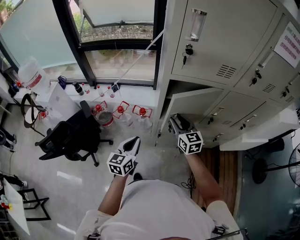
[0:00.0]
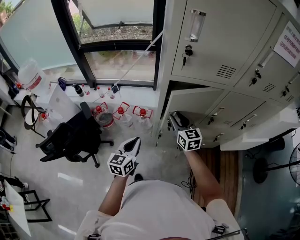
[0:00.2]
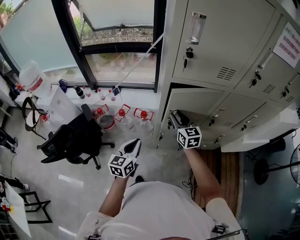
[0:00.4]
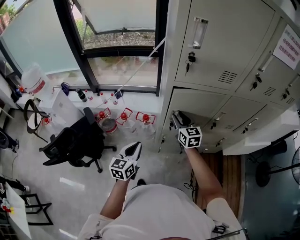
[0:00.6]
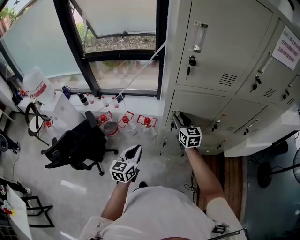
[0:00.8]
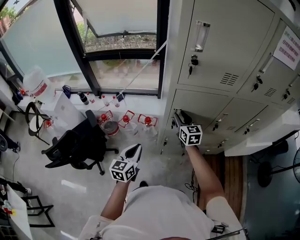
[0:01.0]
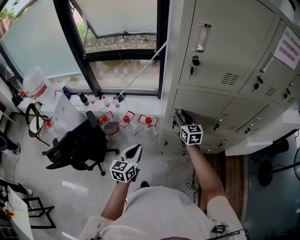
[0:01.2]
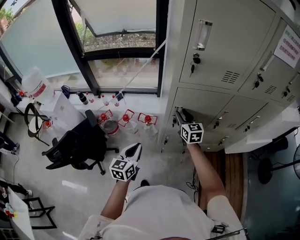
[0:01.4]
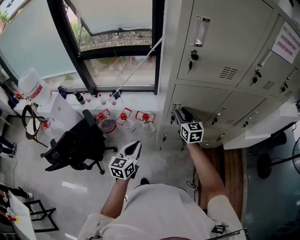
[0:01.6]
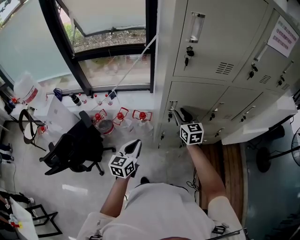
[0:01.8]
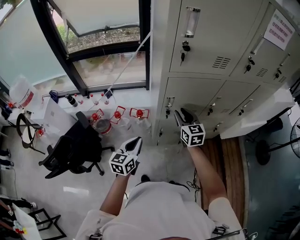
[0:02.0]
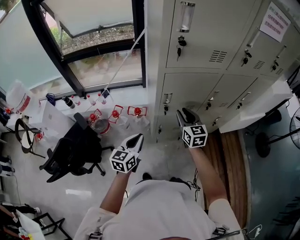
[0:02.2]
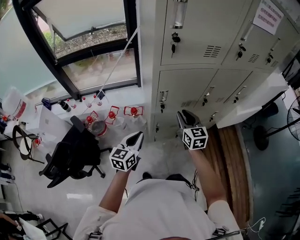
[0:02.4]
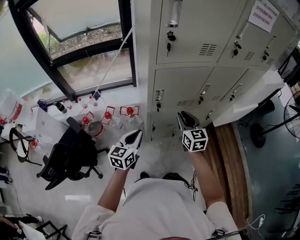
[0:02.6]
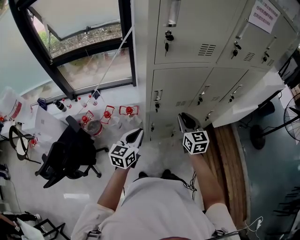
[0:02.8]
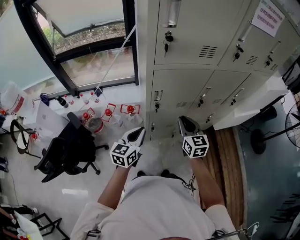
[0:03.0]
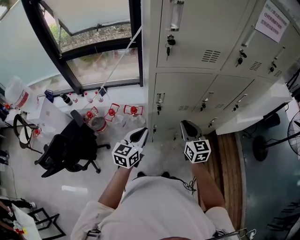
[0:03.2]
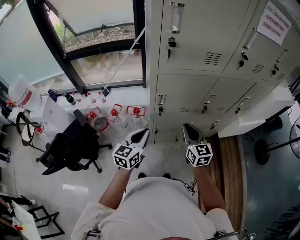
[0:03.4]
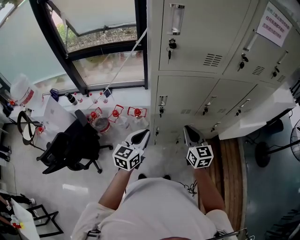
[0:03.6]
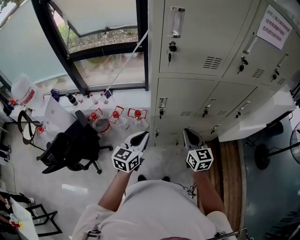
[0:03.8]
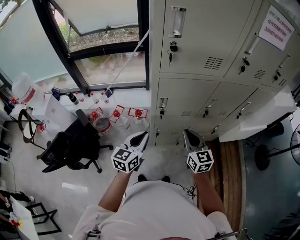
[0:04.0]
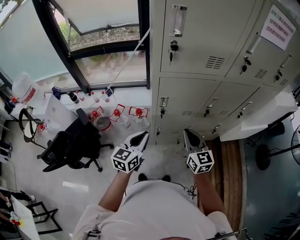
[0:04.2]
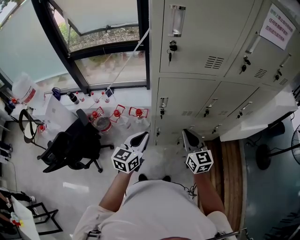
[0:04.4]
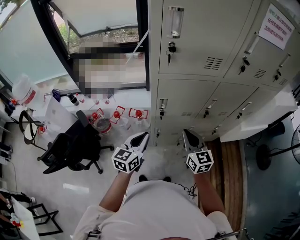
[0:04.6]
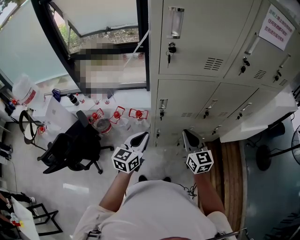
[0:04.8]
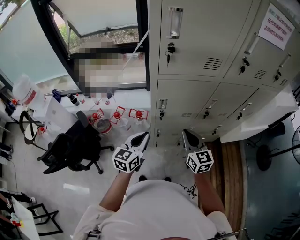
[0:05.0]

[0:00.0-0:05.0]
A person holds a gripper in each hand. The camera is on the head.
0:00.0 to 0:01.6: The right gripper moves forward, approximately 5 cm.
0:01.6 to 0:03.4: The right gripper goes roughly 15 cm backward and to the right, and closes. Meanwhile the left gripper shifts about 10 cm to the right.
0:03.4 to 0:05.0: The grippers stay close to where they were, moving slightly.

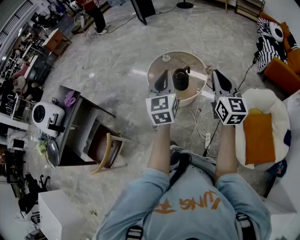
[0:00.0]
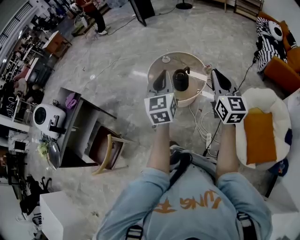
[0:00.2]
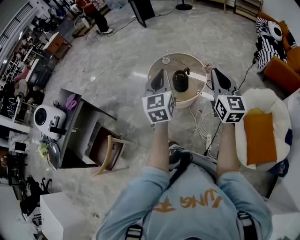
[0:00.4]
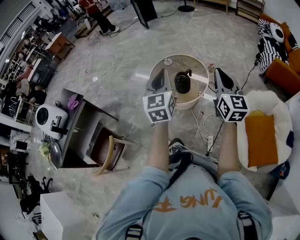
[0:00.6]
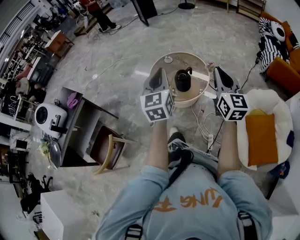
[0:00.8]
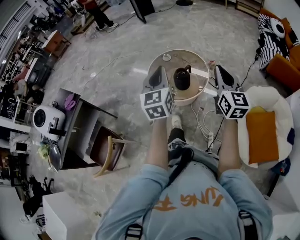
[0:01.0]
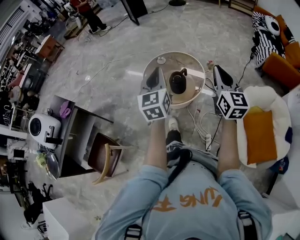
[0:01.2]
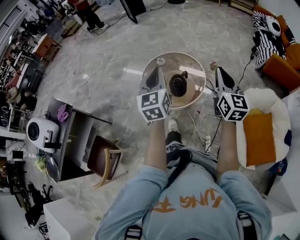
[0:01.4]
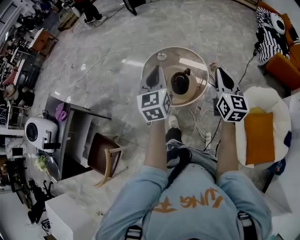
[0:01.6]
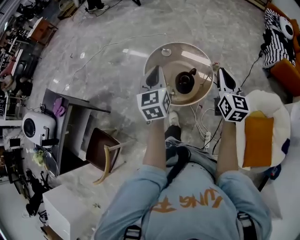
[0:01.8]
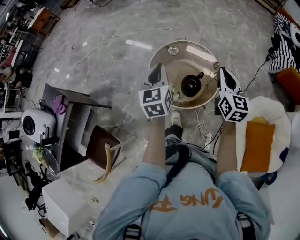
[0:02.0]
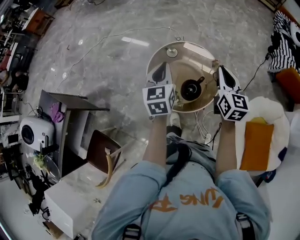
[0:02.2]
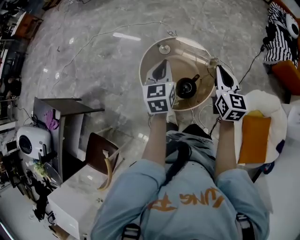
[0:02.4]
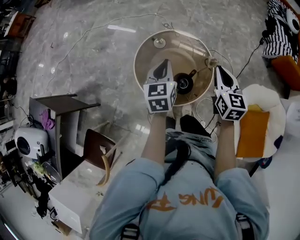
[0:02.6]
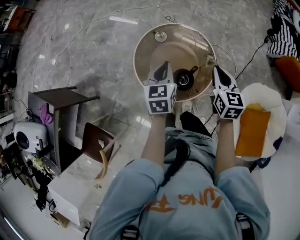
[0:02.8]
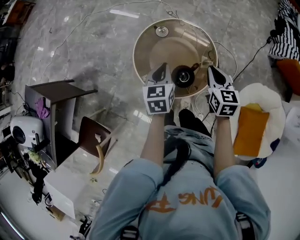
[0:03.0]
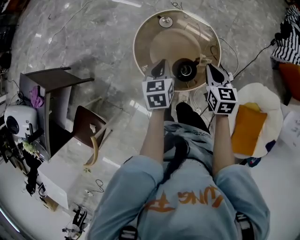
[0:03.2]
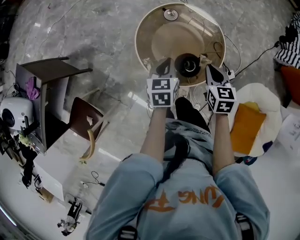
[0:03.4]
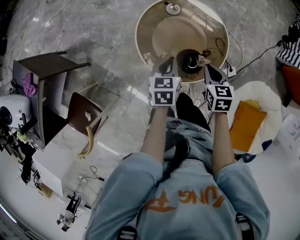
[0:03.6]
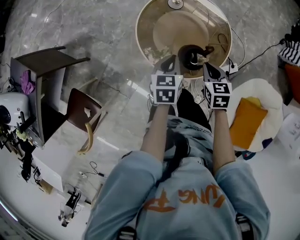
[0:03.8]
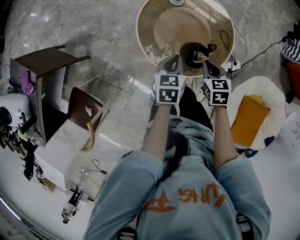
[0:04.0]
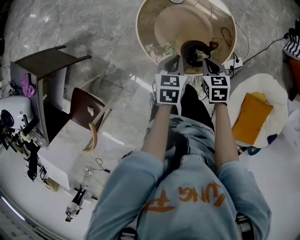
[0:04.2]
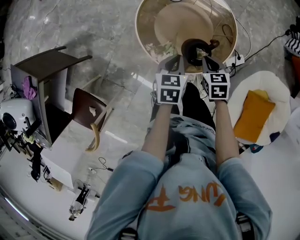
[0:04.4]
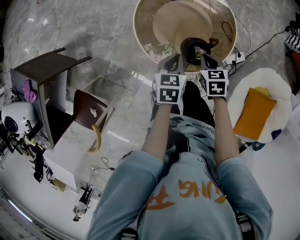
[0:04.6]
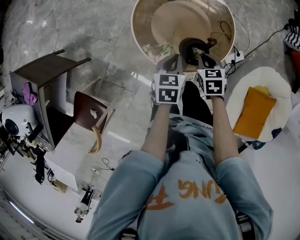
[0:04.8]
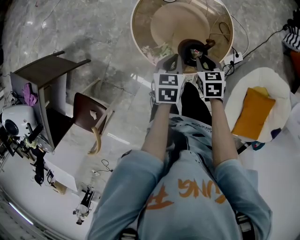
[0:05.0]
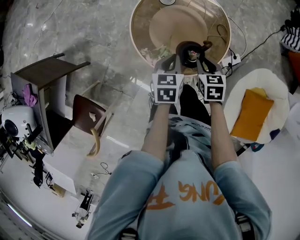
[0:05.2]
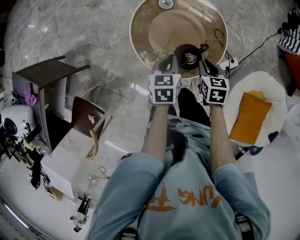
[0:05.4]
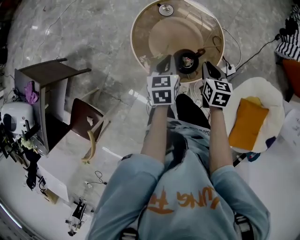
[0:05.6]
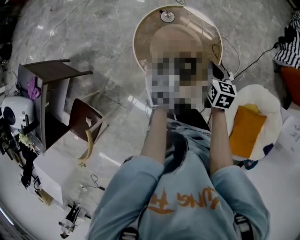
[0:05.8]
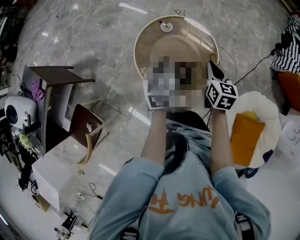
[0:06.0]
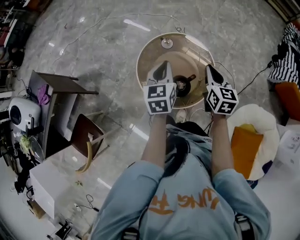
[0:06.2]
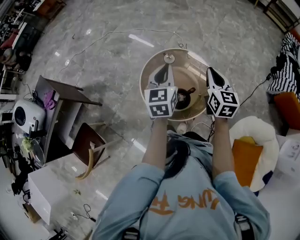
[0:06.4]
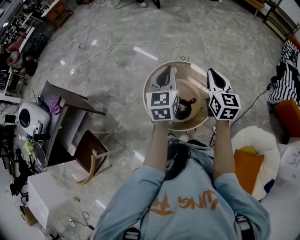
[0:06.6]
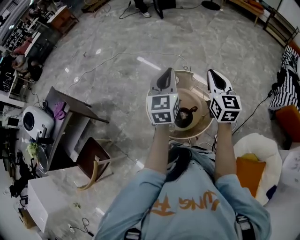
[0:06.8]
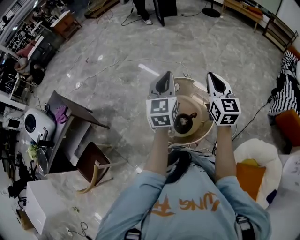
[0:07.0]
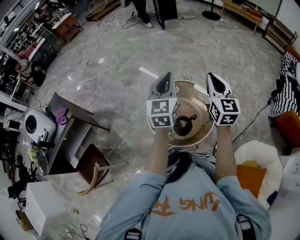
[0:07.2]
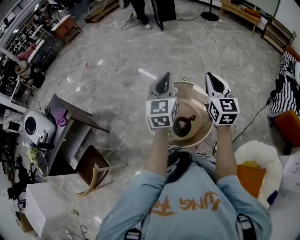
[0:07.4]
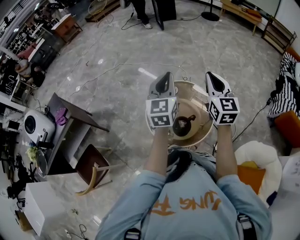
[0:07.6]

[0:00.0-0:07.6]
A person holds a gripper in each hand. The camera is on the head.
0:00.0 to 0:01.6: The left gripper goes about 15 cm forward. The right gripper heads forward and downward, covering about 15 cm.
0:01.6 to 0:03.0: The left gripper heads downward and forward, covering about 30 cm, and rotates some 30 degrees. Meanwhile the right gripper travels forward and downward by some 30 cm, and rotates roughly 30 degrees.
0:03.0 to 0:04.6: The grippers both shift downward by some 15 cm. The right gripper swivels roughly 30 degrees.
0:04.6 to 0:06.0: Both grippers move upward, about 15 cm. The right gripper changes its angle by about 30 degrees, while the left gripper changes its angle by about 20 degrees.
0:06.0 to 0:07.6: Both grippers travel together upward, approximately 25 cm. The left gripper swivels some 30 degrees, while the right gripper tips its fingers upward by about 30 degrees.

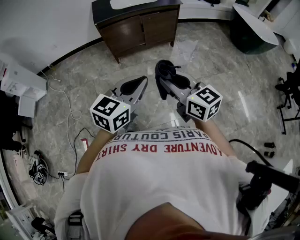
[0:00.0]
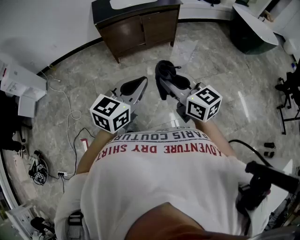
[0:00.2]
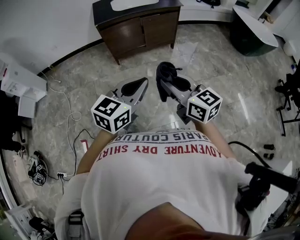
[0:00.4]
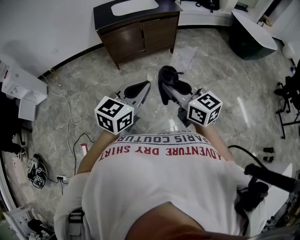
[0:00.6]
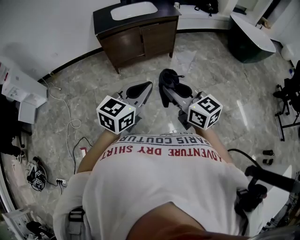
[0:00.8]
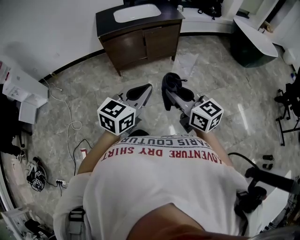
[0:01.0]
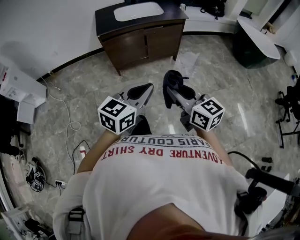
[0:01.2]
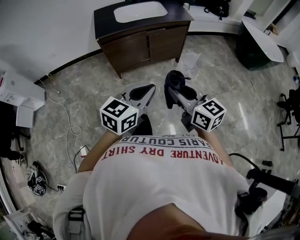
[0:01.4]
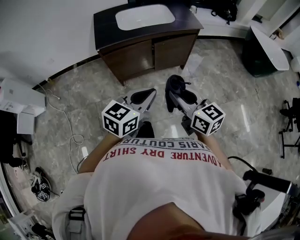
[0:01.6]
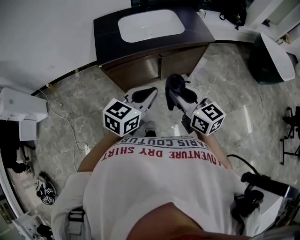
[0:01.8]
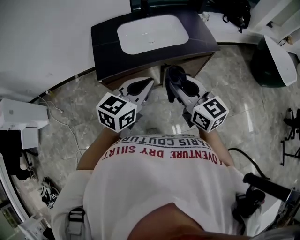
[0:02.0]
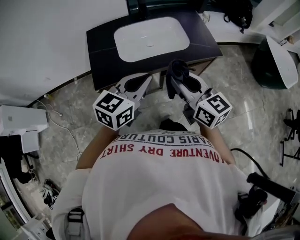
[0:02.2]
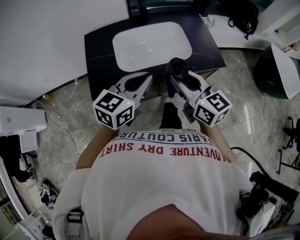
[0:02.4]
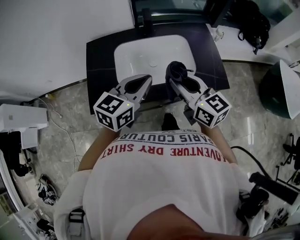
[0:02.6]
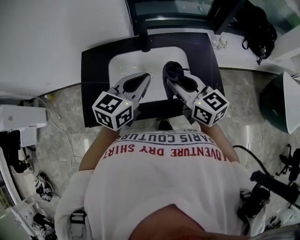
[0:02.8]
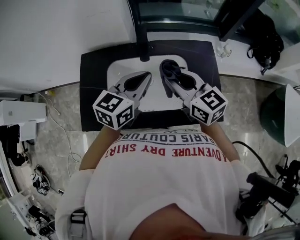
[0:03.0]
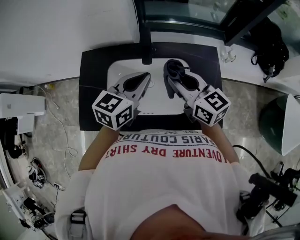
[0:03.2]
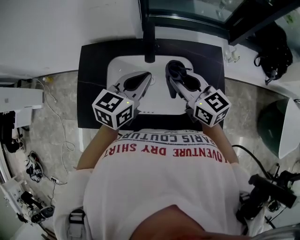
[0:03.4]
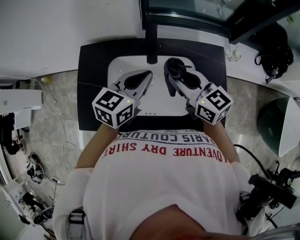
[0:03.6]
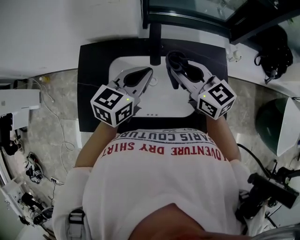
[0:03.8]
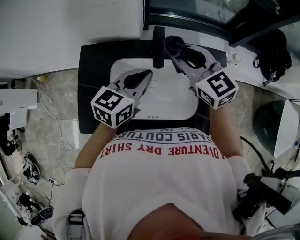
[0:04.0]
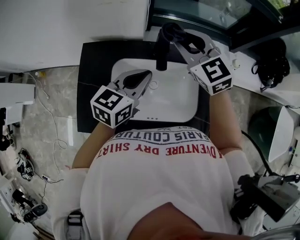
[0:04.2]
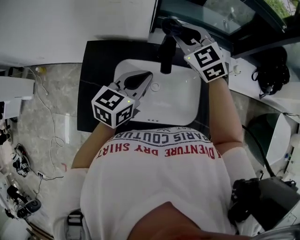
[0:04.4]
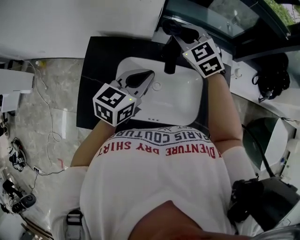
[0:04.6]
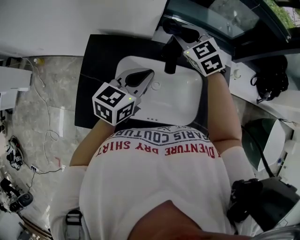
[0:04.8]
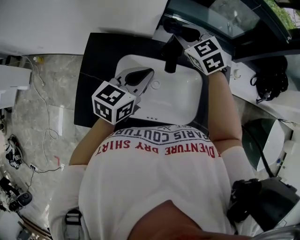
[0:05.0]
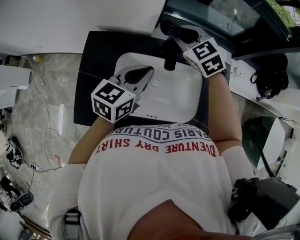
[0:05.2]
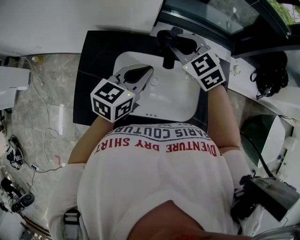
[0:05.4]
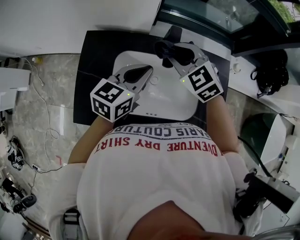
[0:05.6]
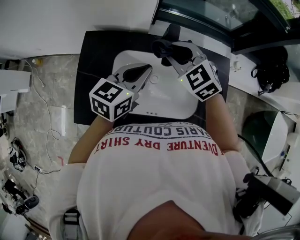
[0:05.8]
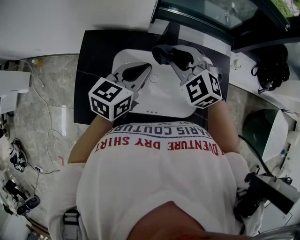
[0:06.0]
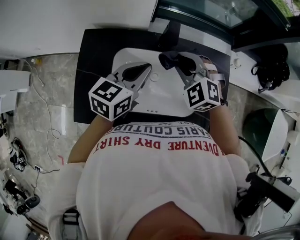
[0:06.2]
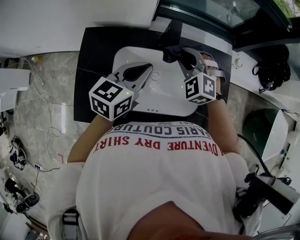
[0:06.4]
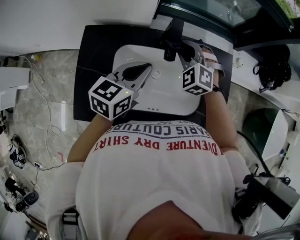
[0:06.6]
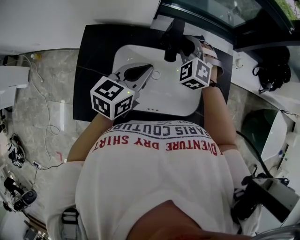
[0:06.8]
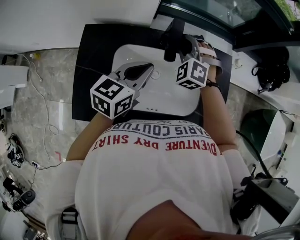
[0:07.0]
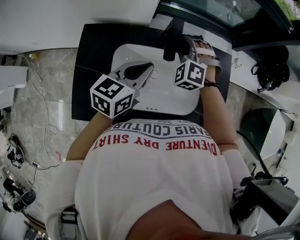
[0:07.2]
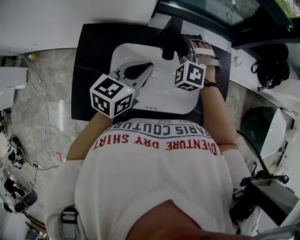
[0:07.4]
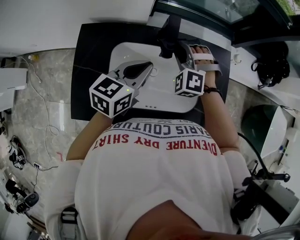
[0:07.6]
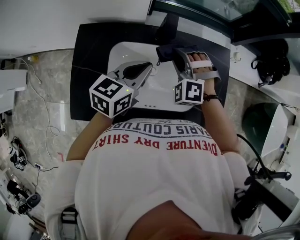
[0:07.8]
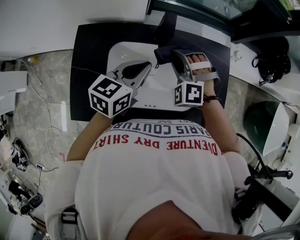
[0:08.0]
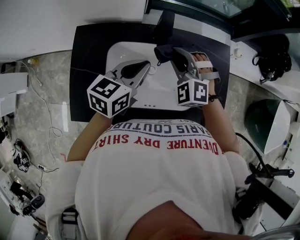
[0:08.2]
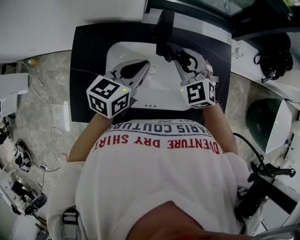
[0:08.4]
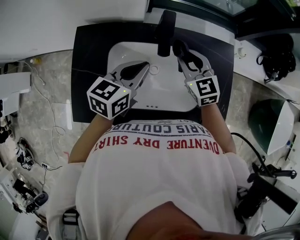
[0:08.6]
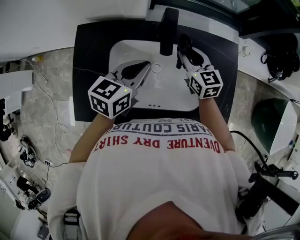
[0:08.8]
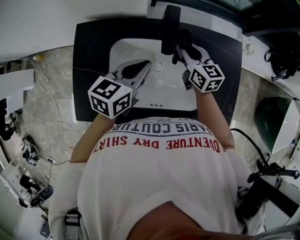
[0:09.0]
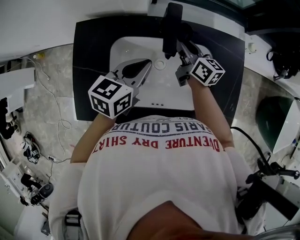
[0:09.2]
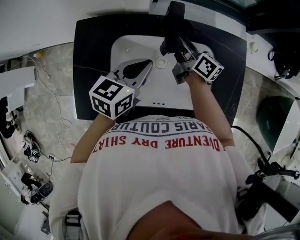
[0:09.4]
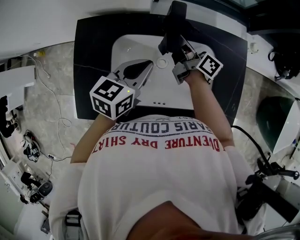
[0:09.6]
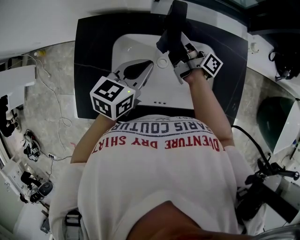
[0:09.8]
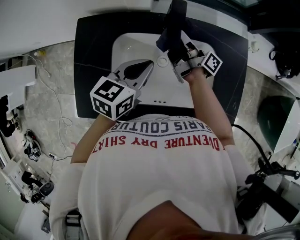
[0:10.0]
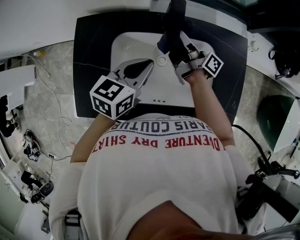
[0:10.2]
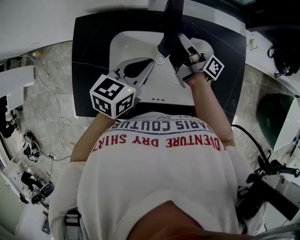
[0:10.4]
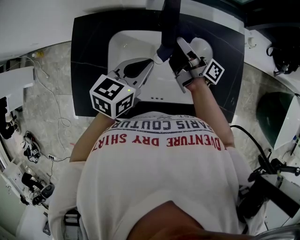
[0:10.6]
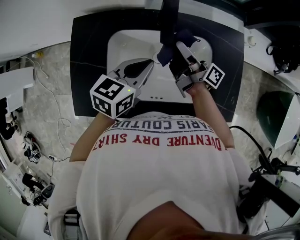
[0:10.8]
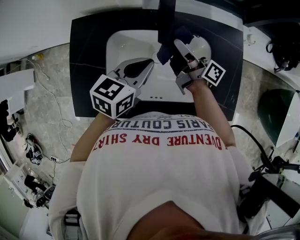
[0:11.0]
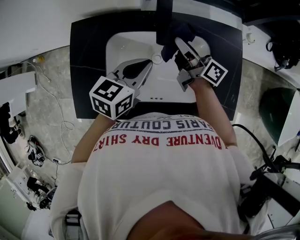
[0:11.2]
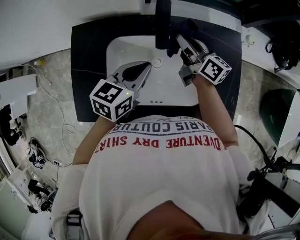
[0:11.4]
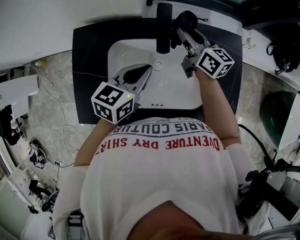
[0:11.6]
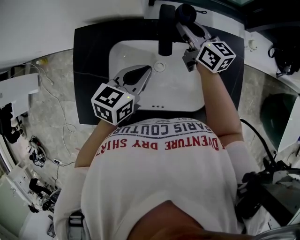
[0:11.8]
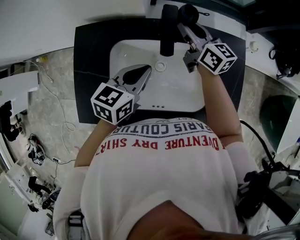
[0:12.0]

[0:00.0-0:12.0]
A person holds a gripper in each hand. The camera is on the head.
0:00.0 to 0:01.6: Both grippers move forward, approximately 35 cm.
0:01.6 to 0:03.0: The two grippers travel together, forward, roughly 70 cm.
0:03.0 to 0:04.4: The right gripper goes about 25 cm forward, and swivels about 40 degrees. The left gripper moves forward and to the left, about 15 cm.
0:04.4 to 0:06.0: The right gripper heads backward, covering roughly 10 cm.
0:06.0 to 0:07.6: The right gripper heads downward, covering some 5 cm, and swivels roughly 30 degrees.
0:07.6 to 0:09.0: The right gripper moves downward, about 5 cm, and twists roughly 90 degrees clockwise, seen from behind.
0:09.0 to 0:10.4: The right gripper rotates around the line of its fingers by some 60 degrees, clockwise from behind.
0:10.4 to 0:12.0: The right gripper shifts roughly 10 cm forward and upward, and twists about 60 degrees counterclockwise, seen from behind.
